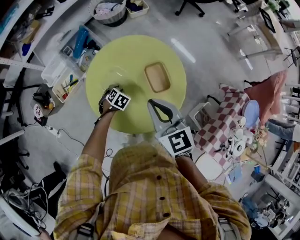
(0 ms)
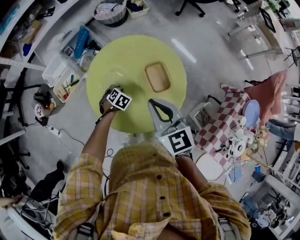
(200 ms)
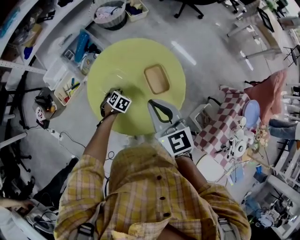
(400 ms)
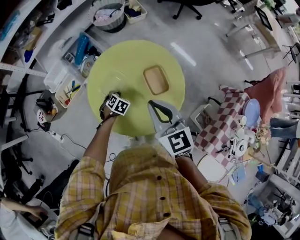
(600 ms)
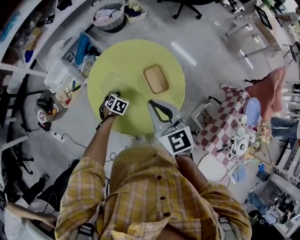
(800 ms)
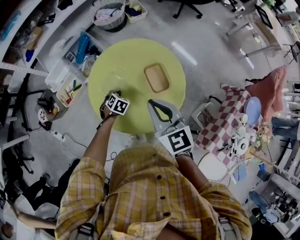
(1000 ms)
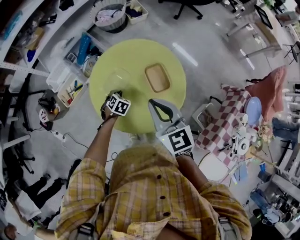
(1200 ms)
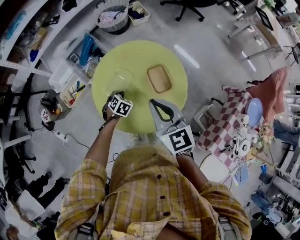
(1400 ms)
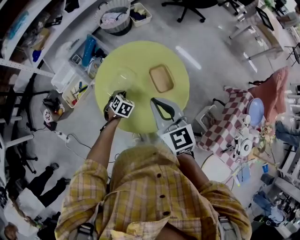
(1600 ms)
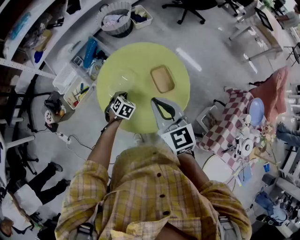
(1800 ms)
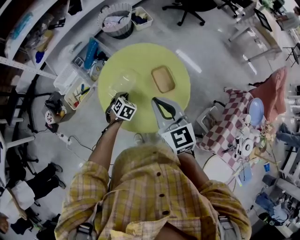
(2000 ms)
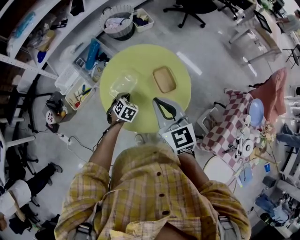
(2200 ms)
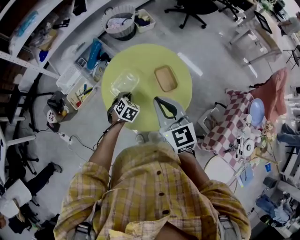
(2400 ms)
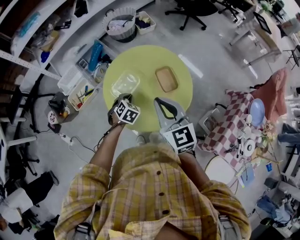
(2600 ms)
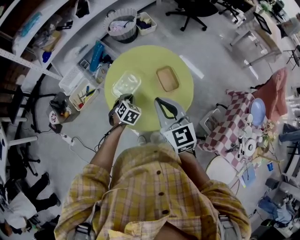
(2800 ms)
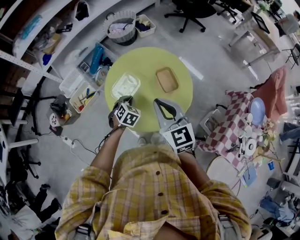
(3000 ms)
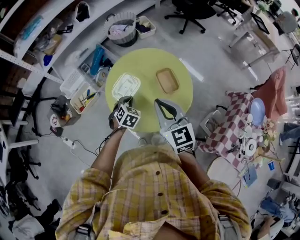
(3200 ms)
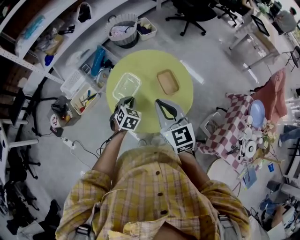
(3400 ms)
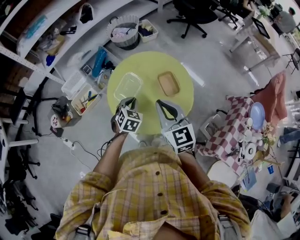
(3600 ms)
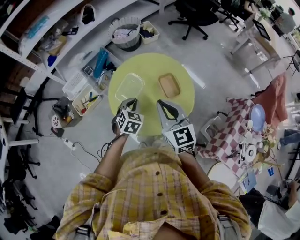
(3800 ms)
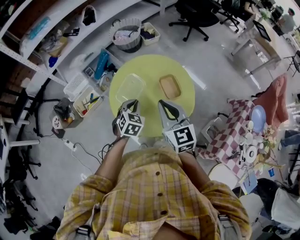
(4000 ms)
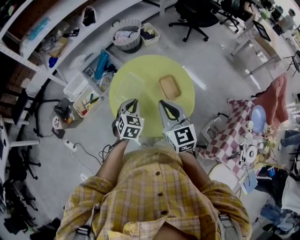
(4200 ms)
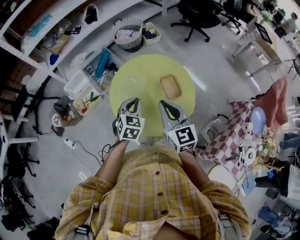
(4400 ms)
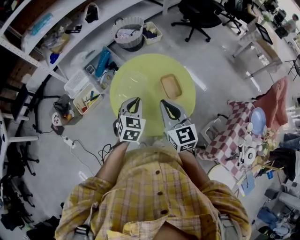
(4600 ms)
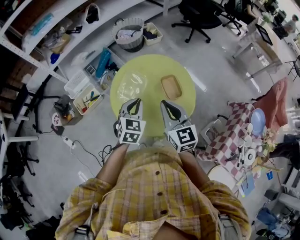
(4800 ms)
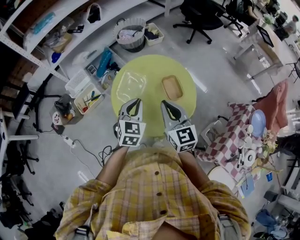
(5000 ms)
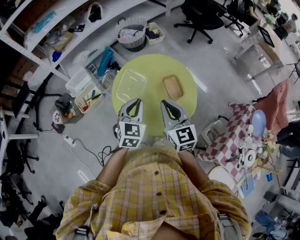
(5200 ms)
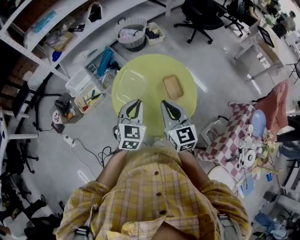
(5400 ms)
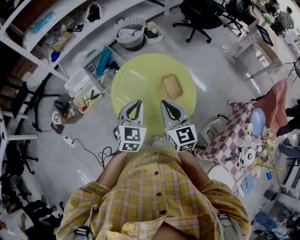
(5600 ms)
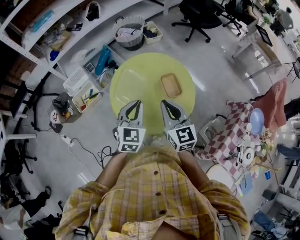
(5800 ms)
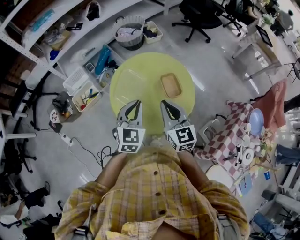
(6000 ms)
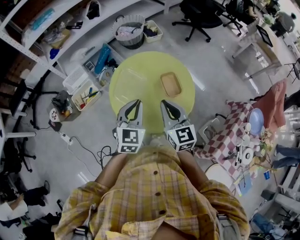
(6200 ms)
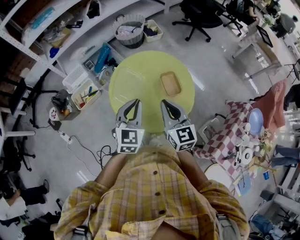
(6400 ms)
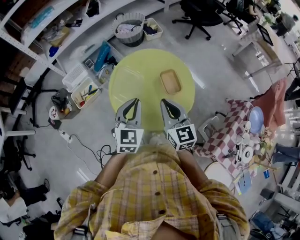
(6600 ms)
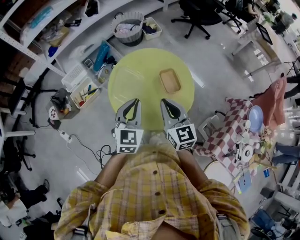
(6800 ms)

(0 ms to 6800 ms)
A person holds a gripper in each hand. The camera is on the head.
0 ms - 1400 ms: The left gripper moves about 5 cm.
1400 ms - 2800 ms: The right gripper shifts by roughly 5 cm; the left gripper moves upward and backward, approximately 10 cm.
2800 ms - 4000 ms: The left gripper moves upward, some 10 cm.
4000 ms - 5400 ms: The left gripper heads upward, covering approximately 10 cm.
5400 ms - 6800 ms: The grippers move only a little.

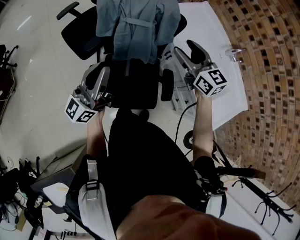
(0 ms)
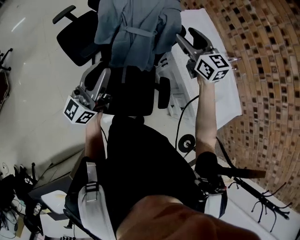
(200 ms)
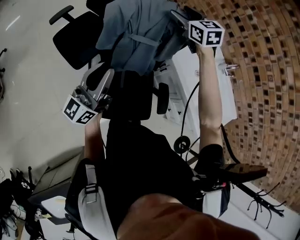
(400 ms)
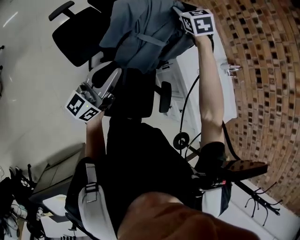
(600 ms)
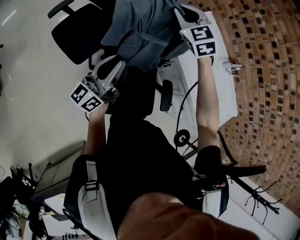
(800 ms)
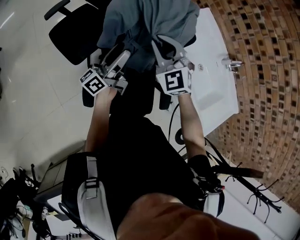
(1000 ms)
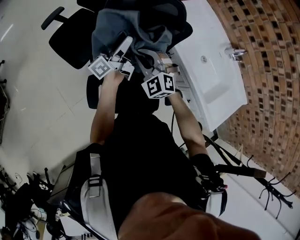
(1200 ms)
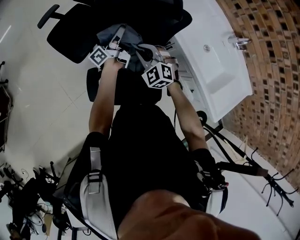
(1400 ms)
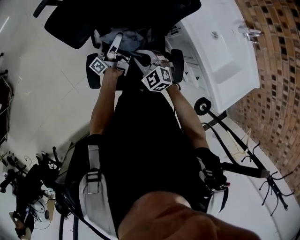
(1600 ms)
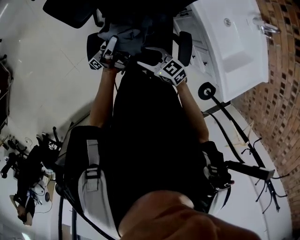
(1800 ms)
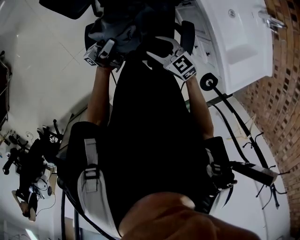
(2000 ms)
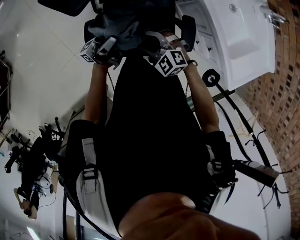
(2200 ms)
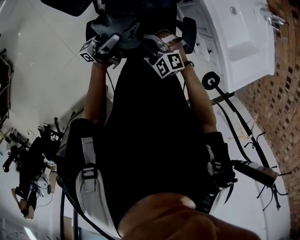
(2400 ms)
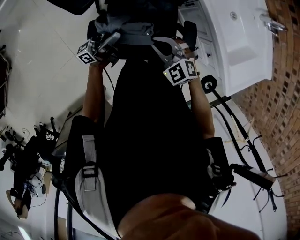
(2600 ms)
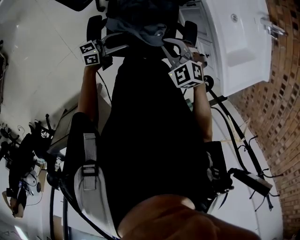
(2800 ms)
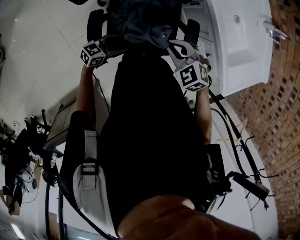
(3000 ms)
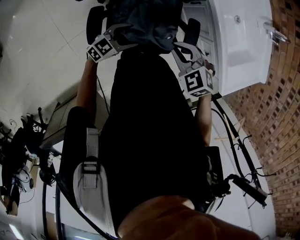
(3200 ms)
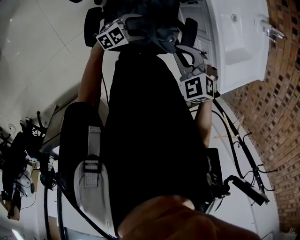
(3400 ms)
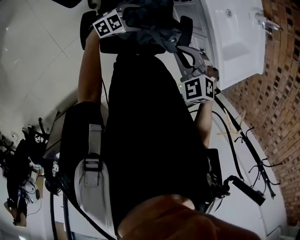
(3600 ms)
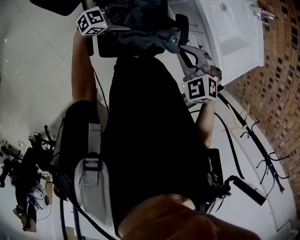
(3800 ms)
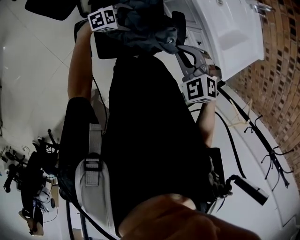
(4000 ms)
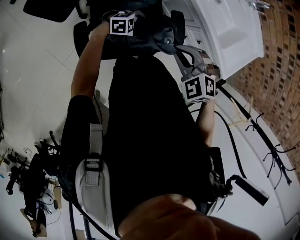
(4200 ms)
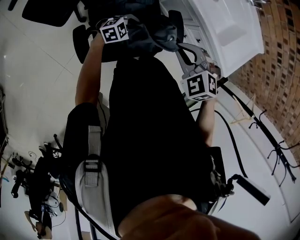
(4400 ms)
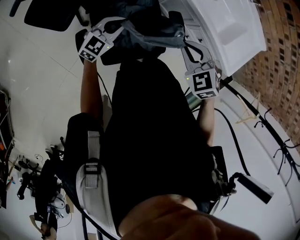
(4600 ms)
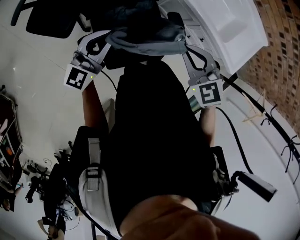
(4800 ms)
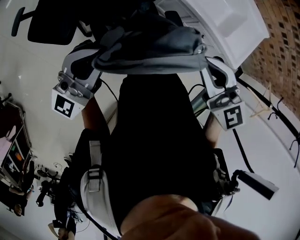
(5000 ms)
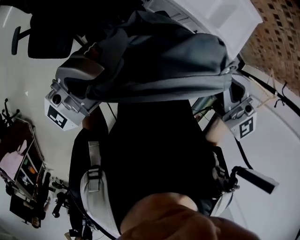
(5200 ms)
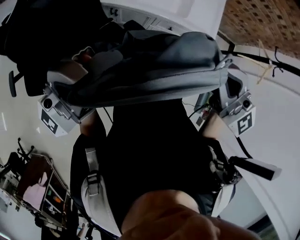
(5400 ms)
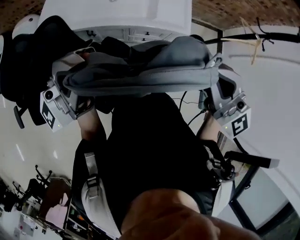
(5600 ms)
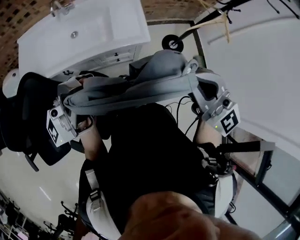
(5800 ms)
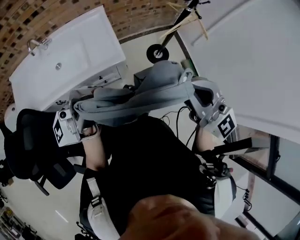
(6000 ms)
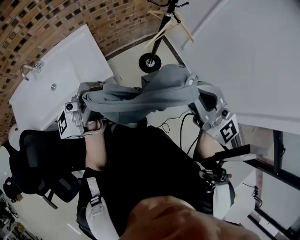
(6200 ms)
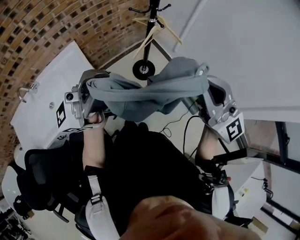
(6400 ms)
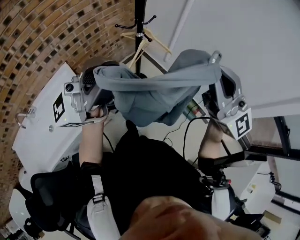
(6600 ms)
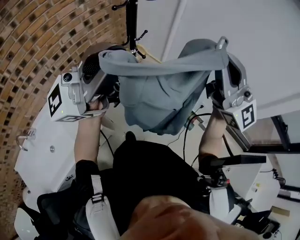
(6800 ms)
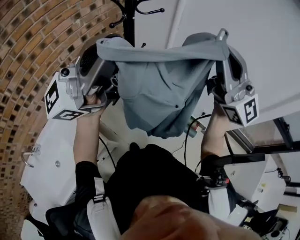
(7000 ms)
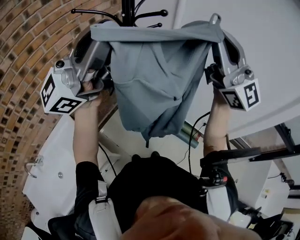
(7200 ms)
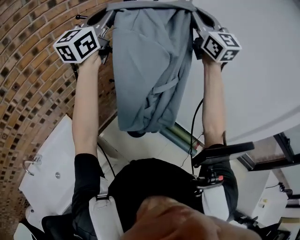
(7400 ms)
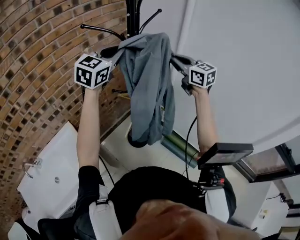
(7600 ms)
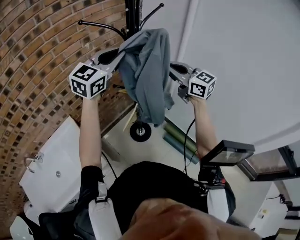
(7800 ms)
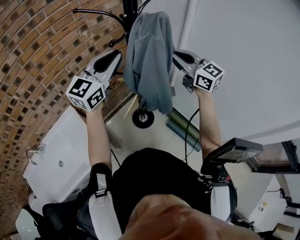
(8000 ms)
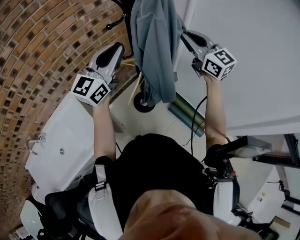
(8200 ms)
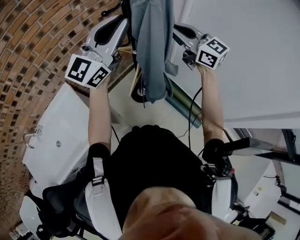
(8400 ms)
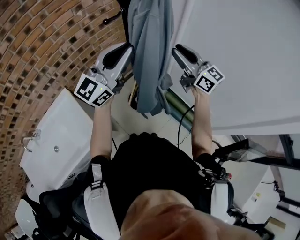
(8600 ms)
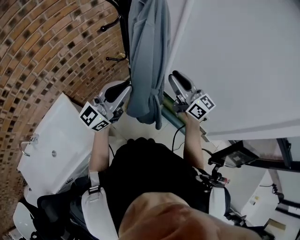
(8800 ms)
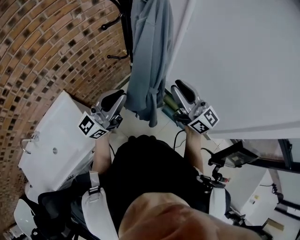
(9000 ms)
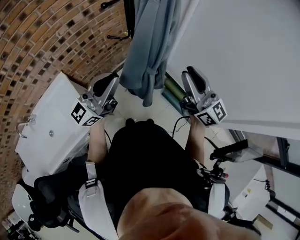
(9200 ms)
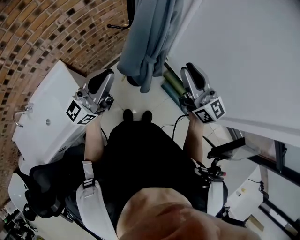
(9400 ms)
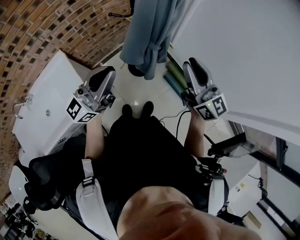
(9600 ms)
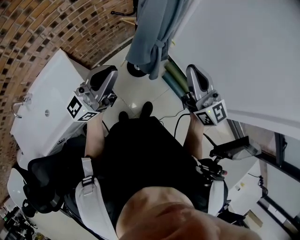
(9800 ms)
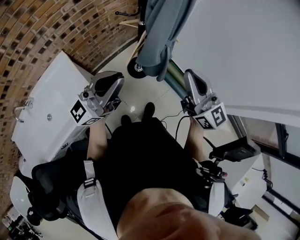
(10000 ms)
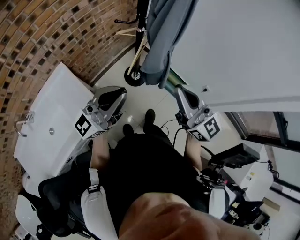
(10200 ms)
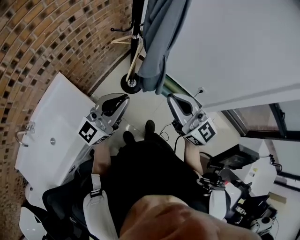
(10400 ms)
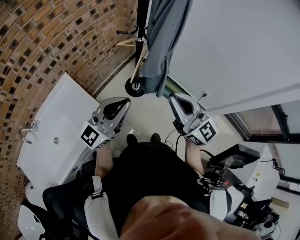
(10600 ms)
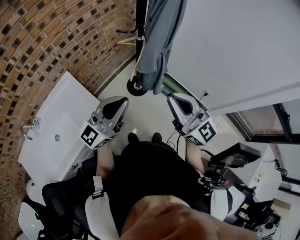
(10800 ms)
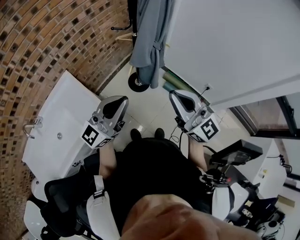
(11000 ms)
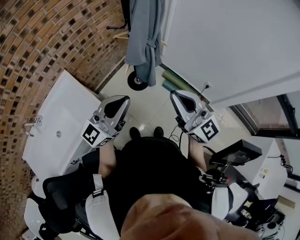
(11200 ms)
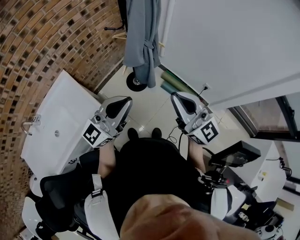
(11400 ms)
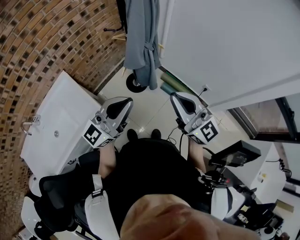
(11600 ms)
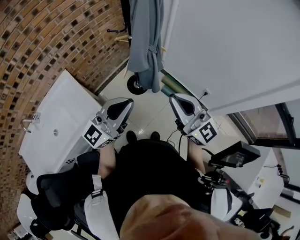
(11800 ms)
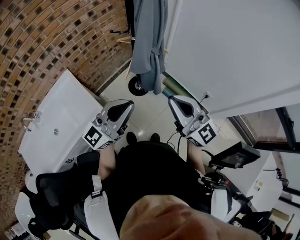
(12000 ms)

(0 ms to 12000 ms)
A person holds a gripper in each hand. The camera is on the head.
0 ms - 1600 ms: The left gripper goes about 30 cm downward and forward, rolls counterclockwise, seen from behind, by some 60 degrees, and opens, then closes once more. Meanwhile the right gripper travels downward and to the left by approximately 35 cm, travels forward and back again, approximately 25 cm each way, swivels roughly 40 degrees, and closes.
1600 ms - 3000 ms: The right gripper moves approximately 10 cm, and opens and closes again; the left gripper changes place by about 25 cm, tips its fingers downward by approximately 50 degrees, and opens up.
3000 ms - 4400 ms: The right gripper ends up approximately 10 cm from where it was; the left gripper travels upward and back again, some 5 cm each way, twists some 50 degrees clockwise, seen from behind, and closes its fingers.
4400 ms - 6000 ms: The two grippers travel together, some 50 cm. The left gripper heads upward, covering about 60 cm, and angles its fingers upward, by approximately 90 degrees. Meanwhile the right gripper tips its fingers upward by roughly 70 degrees.
6000 ms - 7600 ms: The two grippers travel together, roughly 60 cm. The right gripper changes its angle by some 40 degrees. The left gripper tilts its fingers about 50 degrees downward.
7600 ms - 9000 ms: The two grippers go some 25 cm backward and downward. The right gripper swivels some 30 degrees, and opens; the left gripper swivels some 40 degrees.
9000 ms - 10400 ms: The left gripper travels backward by about 15 cm, while the right gripper shifts about 25 cm backward and to the left, and closes up.
10400 ms - 12000 ms: The right gripper goes some 10 cm to the right, while the left gripper moves to the right and backward, some 10 cm.

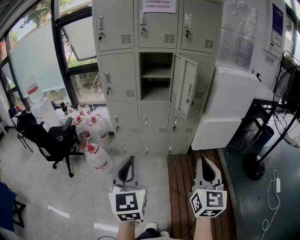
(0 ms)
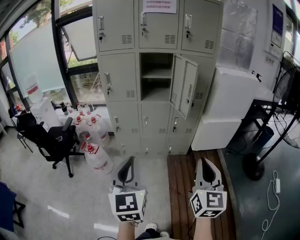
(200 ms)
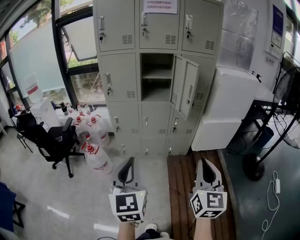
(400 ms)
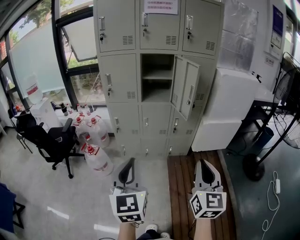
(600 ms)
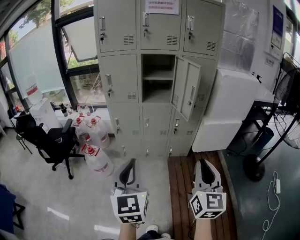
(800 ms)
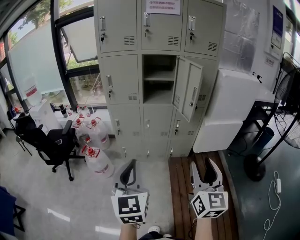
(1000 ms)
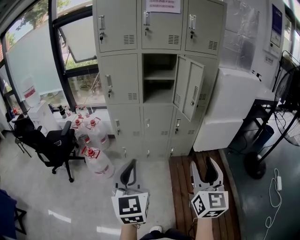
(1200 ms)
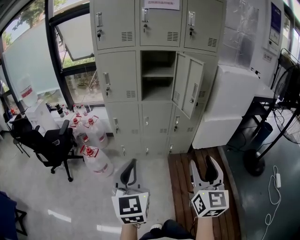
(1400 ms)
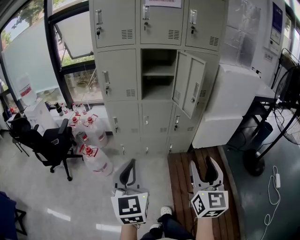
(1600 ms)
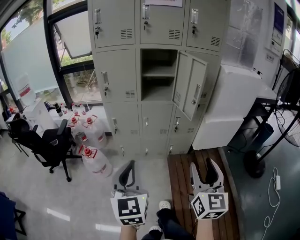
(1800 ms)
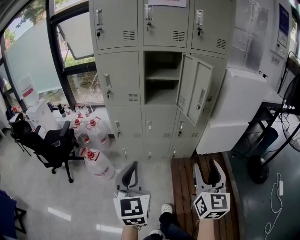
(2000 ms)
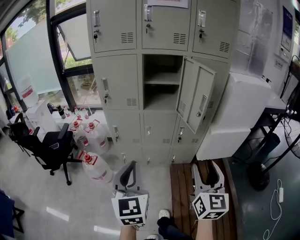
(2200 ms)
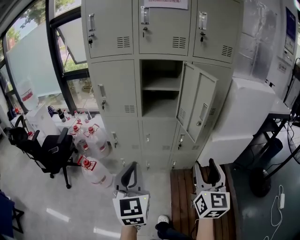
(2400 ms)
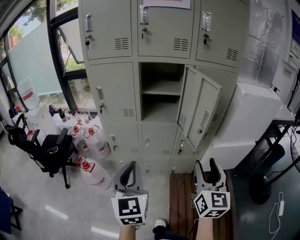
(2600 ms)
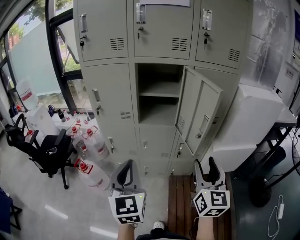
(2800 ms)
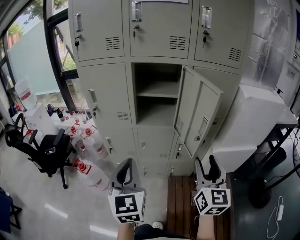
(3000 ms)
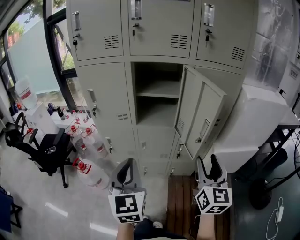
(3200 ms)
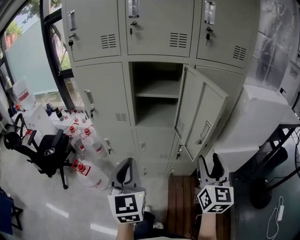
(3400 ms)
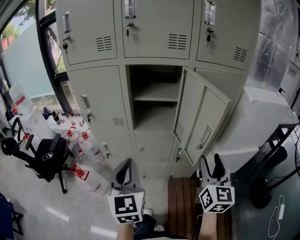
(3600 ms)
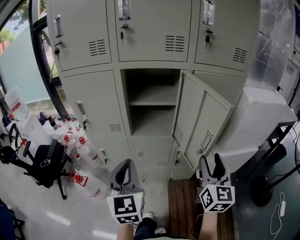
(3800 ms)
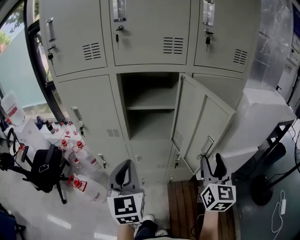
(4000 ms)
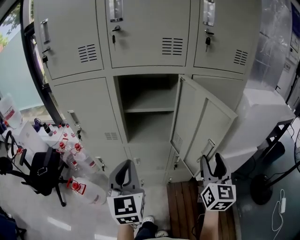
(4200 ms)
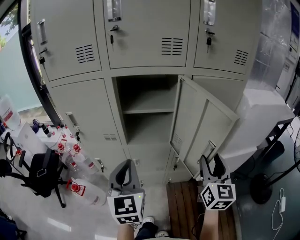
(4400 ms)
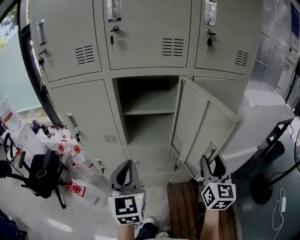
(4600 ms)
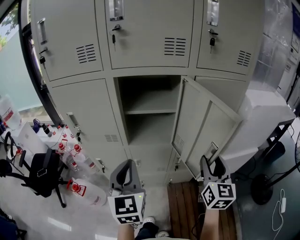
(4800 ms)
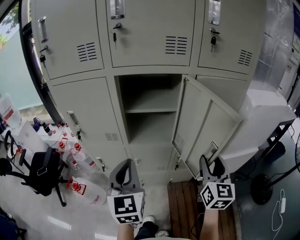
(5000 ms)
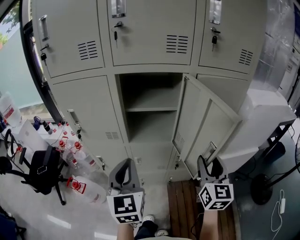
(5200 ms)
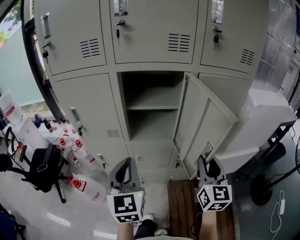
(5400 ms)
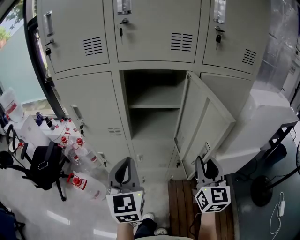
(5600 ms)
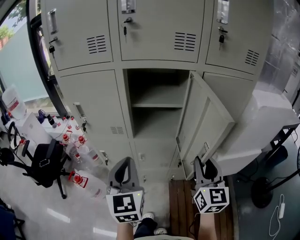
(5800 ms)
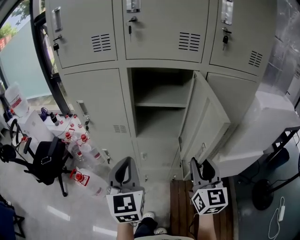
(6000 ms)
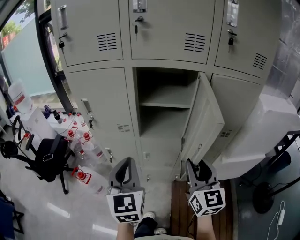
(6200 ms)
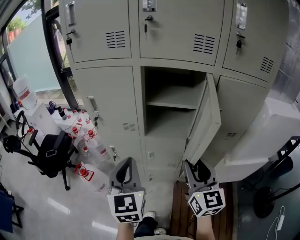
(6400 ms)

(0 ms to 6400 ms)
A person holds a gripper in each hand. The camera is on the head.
0 ms - 1600 ms: The right gripper goes some 5 cm to the left, and opens; the left gripper moves about 5 cm.
1600 ms - 3200 ms: Both grippers move forward, roughly 30 cm.
3200 ms - 4800 ms: The two grippers go roughly 15 cm forward.
4800 ms - 6400 ms: The right gripper shifts some 15 cm to the left, and turns by approximately 20 degrees. The left gripper shifts approximately 5 cm to the left.
